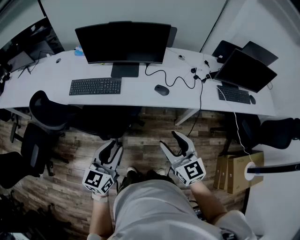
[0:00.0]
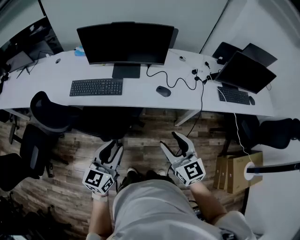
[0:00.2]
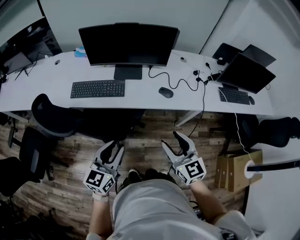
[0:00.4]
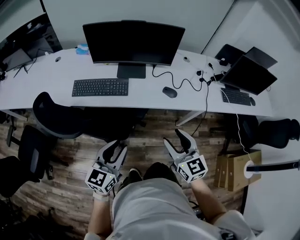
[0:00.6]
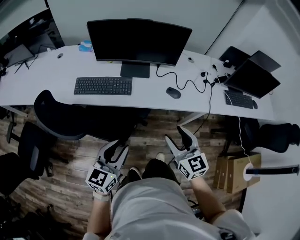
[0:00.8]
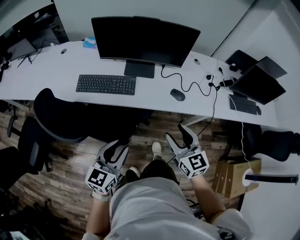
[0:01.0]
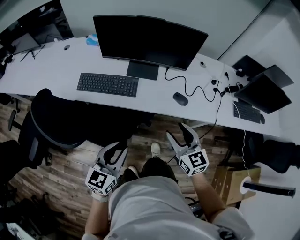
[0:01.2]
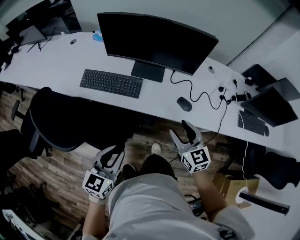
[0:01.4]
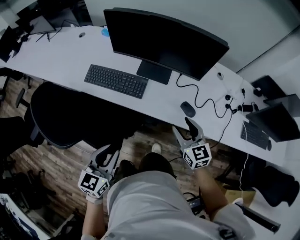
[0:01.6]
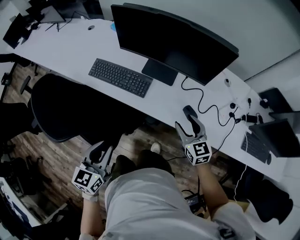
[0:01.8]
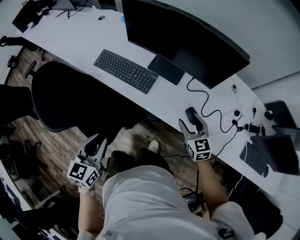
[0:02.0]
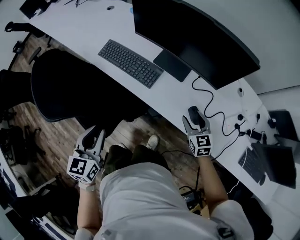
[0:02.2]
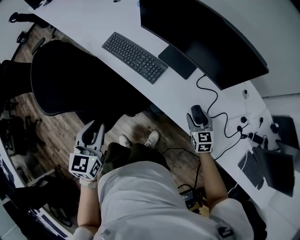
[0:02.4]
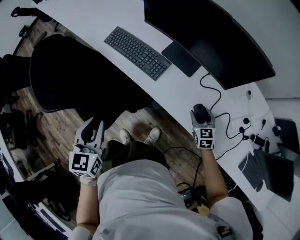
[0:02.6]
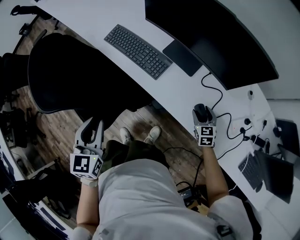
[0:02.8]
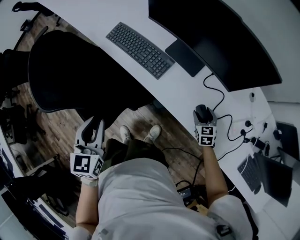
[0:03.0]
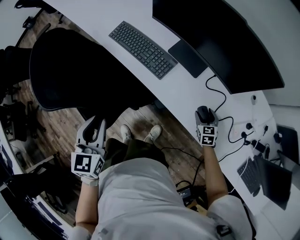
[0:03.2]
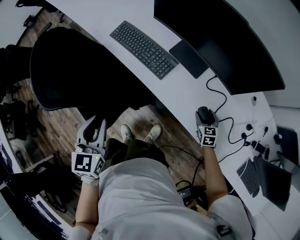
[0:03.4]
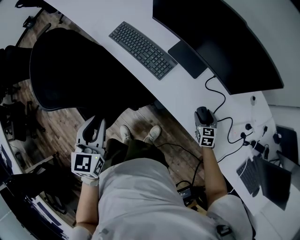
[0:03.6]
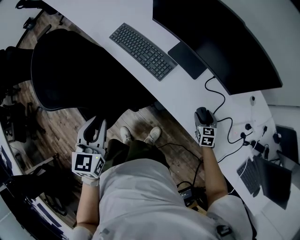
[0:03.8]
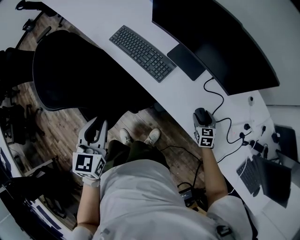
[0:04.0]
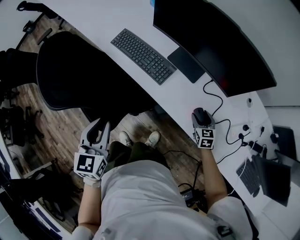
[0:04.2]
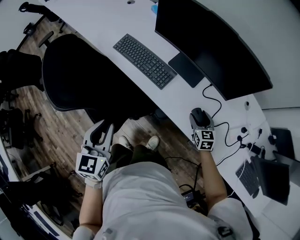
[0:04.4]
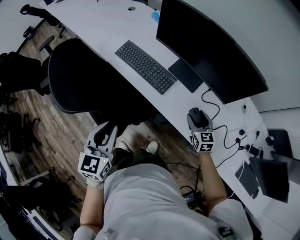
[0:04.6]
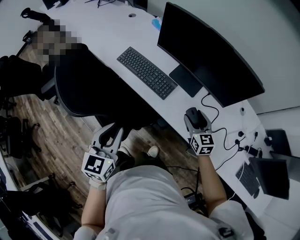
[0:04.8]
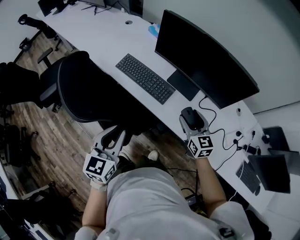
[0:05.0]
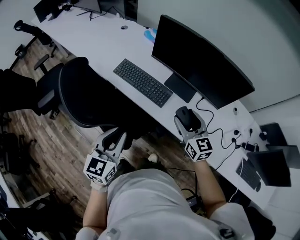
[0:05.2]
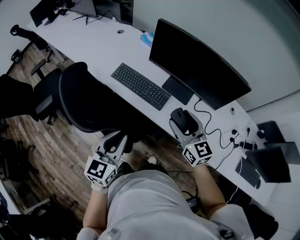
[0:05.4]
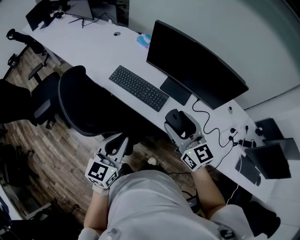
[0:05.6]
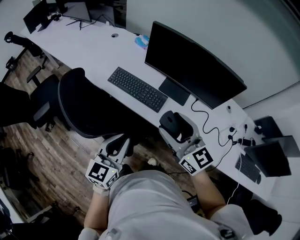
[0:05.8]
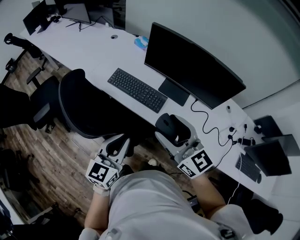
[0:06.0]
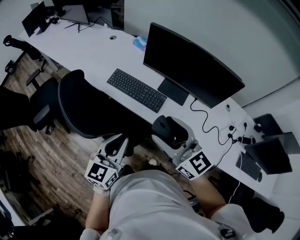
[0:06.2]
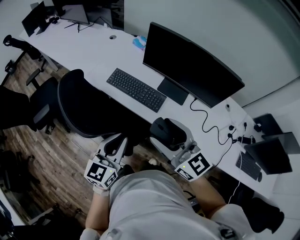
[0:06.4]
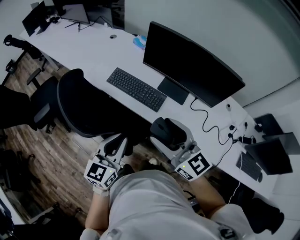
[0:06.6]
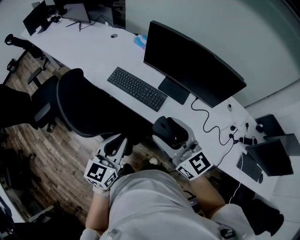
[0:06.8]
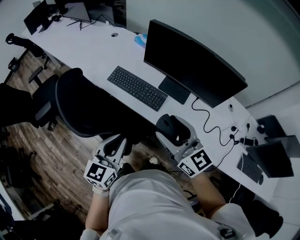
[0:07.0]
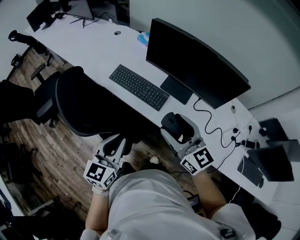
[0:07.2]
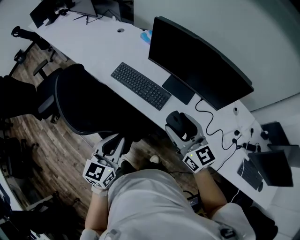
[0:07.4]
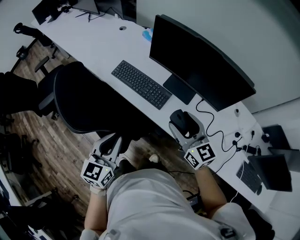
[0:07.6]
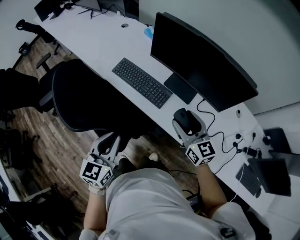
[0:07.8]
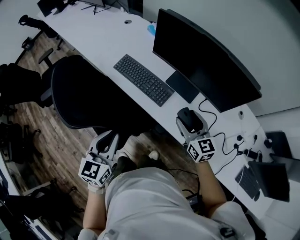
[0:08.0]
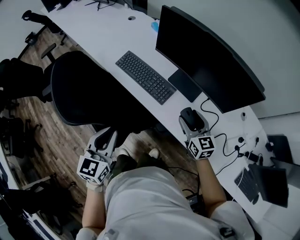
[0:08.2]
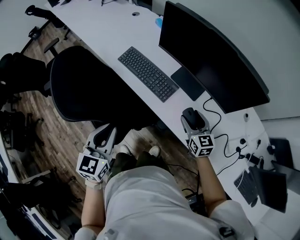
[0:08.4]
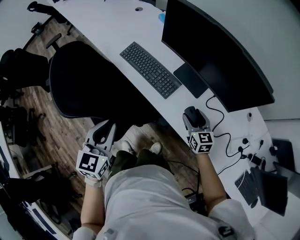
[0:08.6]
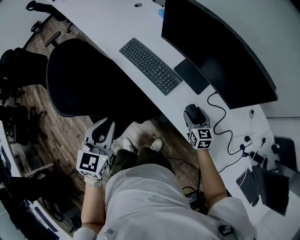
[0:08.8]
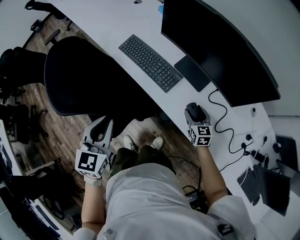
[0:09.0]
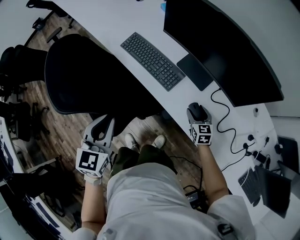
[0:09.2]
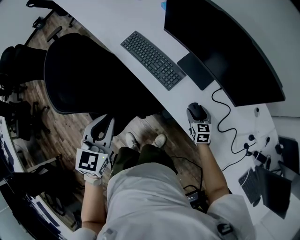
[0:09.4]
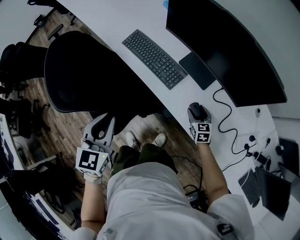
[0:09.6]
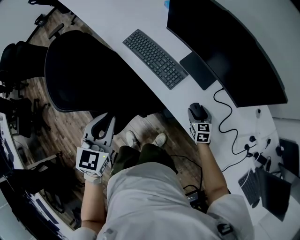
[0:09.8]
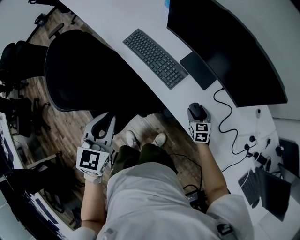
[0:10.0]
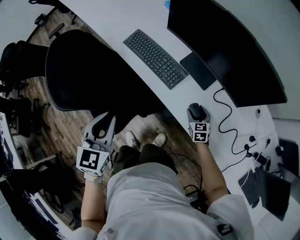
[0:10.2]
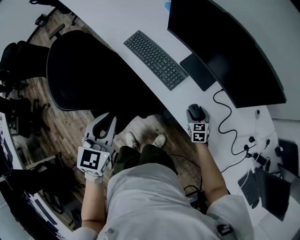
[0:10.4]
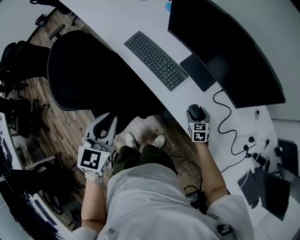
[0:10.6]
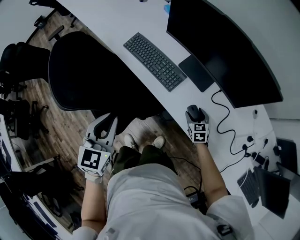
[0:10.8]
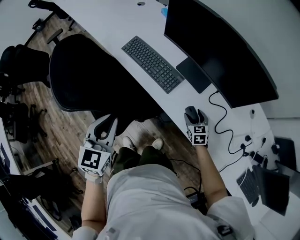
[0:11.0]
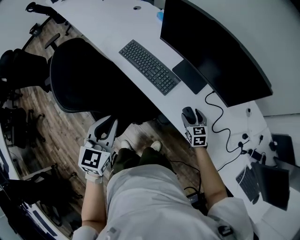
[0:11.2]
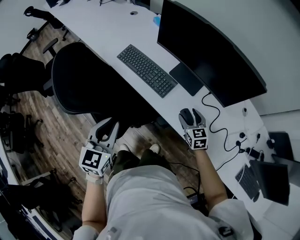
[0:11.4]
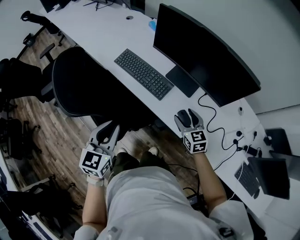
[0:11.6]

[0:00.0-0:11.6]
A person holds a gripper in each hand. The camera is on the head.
0:00.0 to 0:01.4: The left gripper heads forward and to the left, covering roughly 10 cm. The right gripper goes roughly 20 cm forward.
0:01.4 to 0:02.8: The right gripper travels downward by some 25 cm, and rotates about 30 degrees; the left gripper ends up approximately 5 cm from where it was, and rotates approximately 50 degrees.
0:02.8 to 0:04.4: The right gripper ends up roughly 5 cm from where it was.
0:04.4 to 0:05.8: The right gripper moves upward and to the left, approximately 40 cm, and points its fingers some 30 degrees further upward; the left gripper heads upward, covering about 5 cm, and turns by roughly 30 degrees.
0:05.8 to 0:07.2: The grippers move only a little.
0:07.2 to 0:08.8: The right gripper travels downward and to the right by approximately 30 cm, and turns by some 30 degrees, while the left gripper swivels some 20 degrees.
0:08.8 to 0:10.2: The right gripper is displaced downward by about 10 cm.
0:10.2 to 0:11.6: The right gripper is displaced upward by about 15 cm.

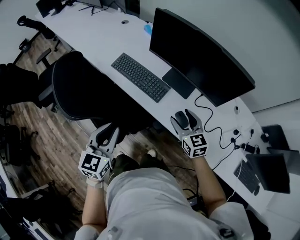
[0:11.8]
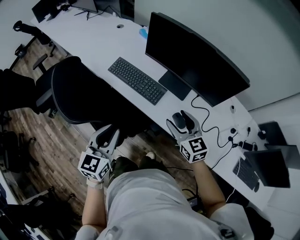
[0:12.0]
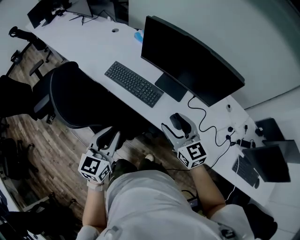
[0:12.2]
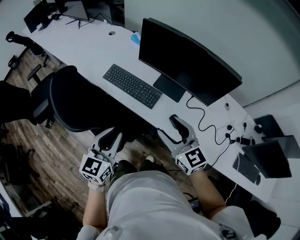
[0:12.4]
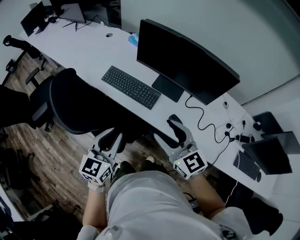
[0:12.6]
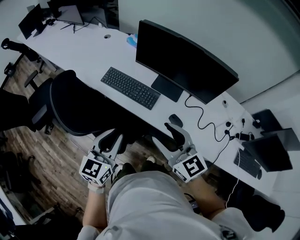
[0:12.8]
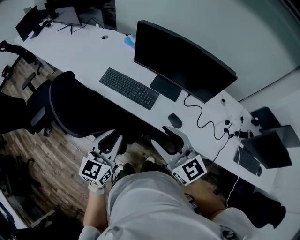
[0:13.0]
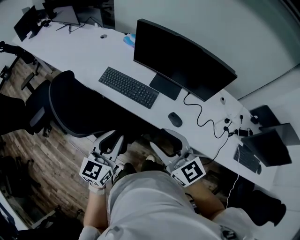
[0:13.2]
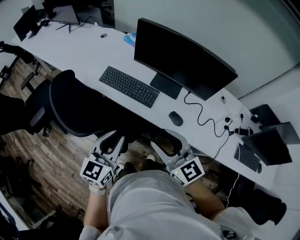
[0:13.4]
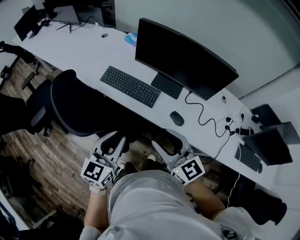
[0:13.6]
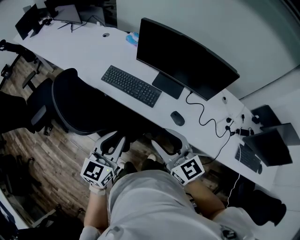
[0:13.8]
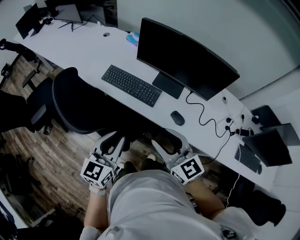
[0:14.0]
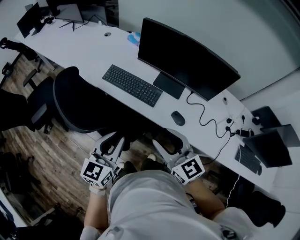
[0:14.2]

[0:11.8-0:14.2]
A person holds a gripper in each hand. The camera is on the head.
0:11.8 to 0:13.0: The right gripper moves upward, to the left and backward, roughly 20 cm.
0:13.0 to 0:14.2: There are only small adjustments of the grippers.

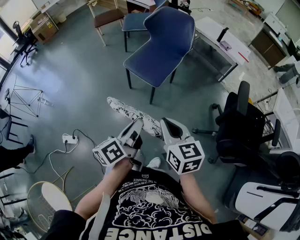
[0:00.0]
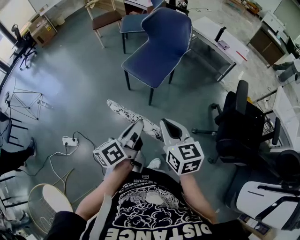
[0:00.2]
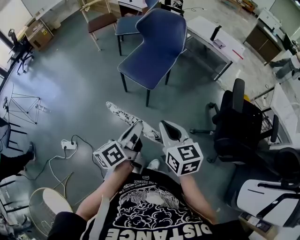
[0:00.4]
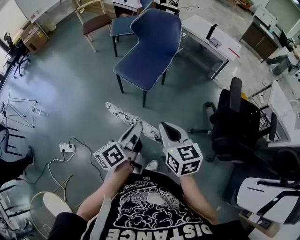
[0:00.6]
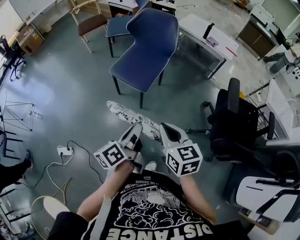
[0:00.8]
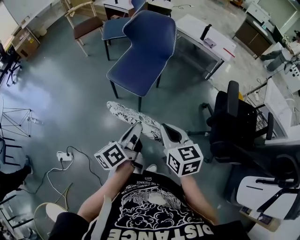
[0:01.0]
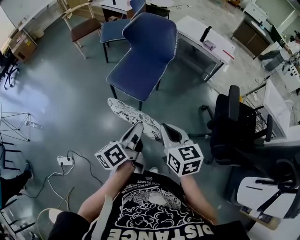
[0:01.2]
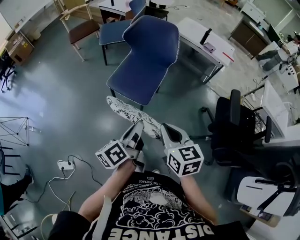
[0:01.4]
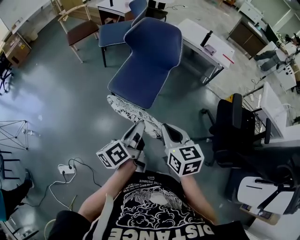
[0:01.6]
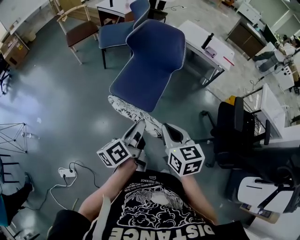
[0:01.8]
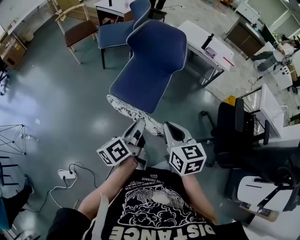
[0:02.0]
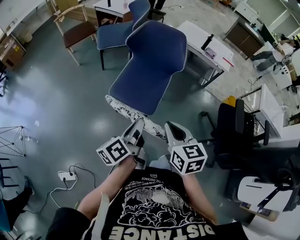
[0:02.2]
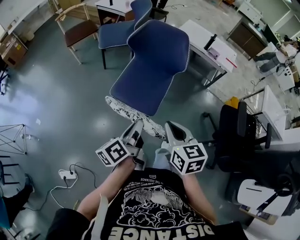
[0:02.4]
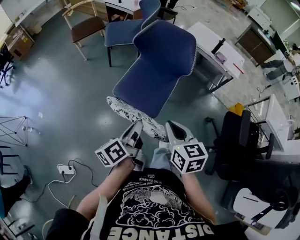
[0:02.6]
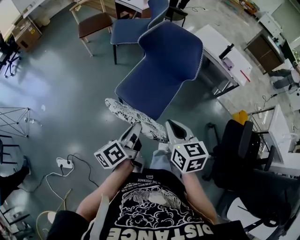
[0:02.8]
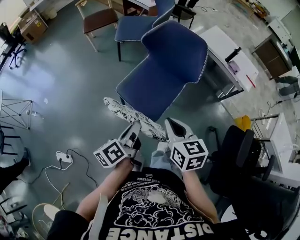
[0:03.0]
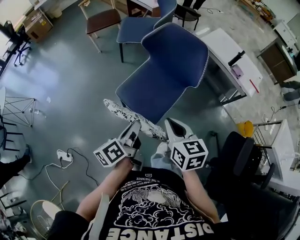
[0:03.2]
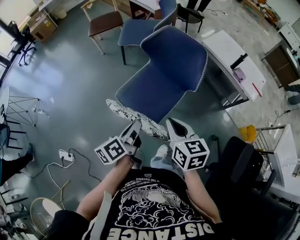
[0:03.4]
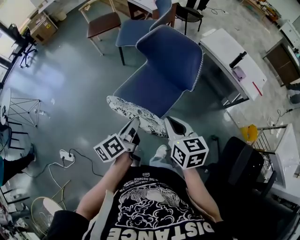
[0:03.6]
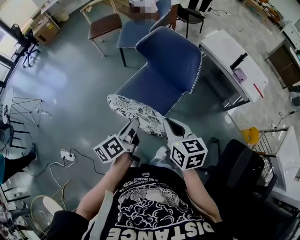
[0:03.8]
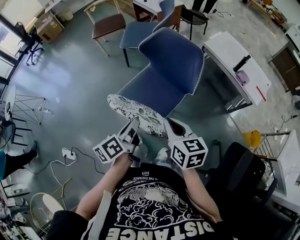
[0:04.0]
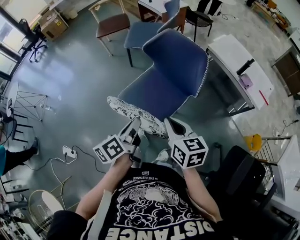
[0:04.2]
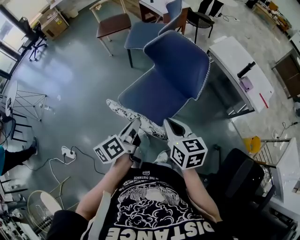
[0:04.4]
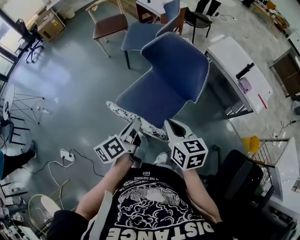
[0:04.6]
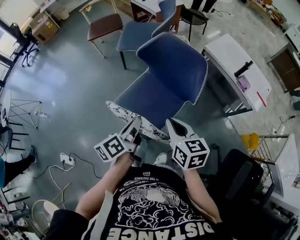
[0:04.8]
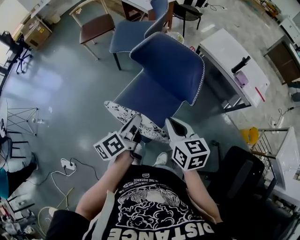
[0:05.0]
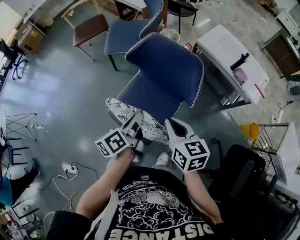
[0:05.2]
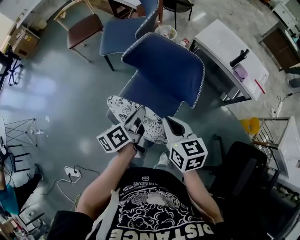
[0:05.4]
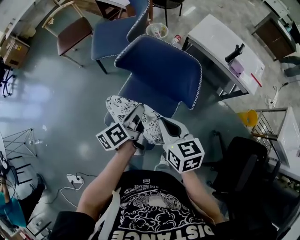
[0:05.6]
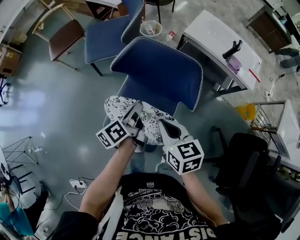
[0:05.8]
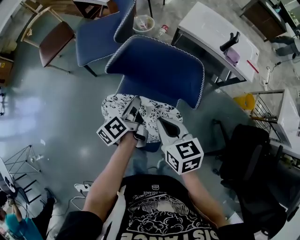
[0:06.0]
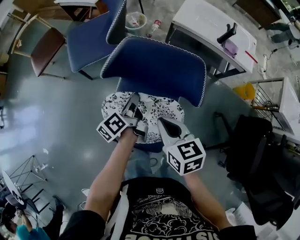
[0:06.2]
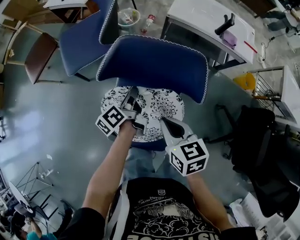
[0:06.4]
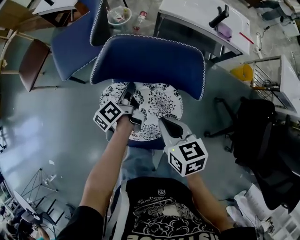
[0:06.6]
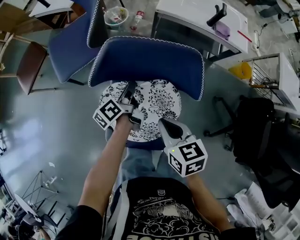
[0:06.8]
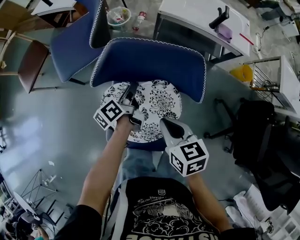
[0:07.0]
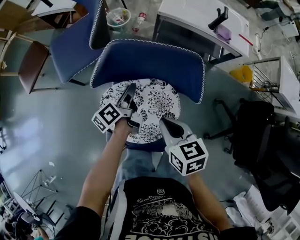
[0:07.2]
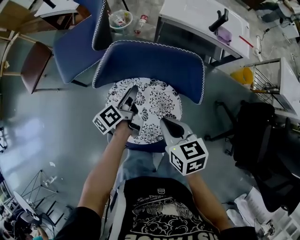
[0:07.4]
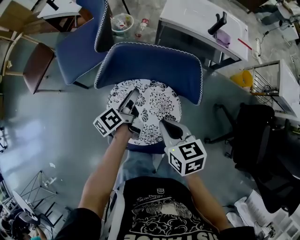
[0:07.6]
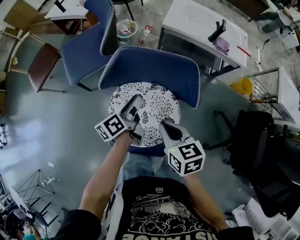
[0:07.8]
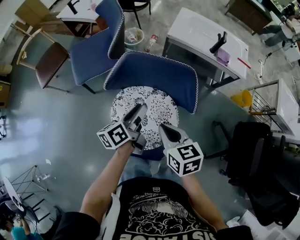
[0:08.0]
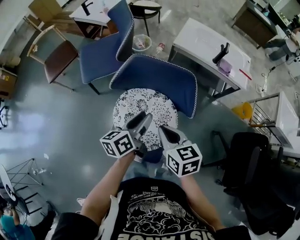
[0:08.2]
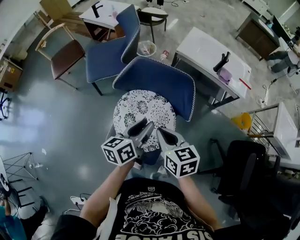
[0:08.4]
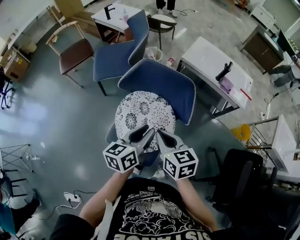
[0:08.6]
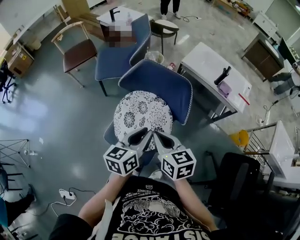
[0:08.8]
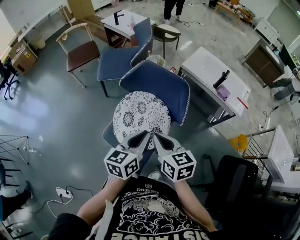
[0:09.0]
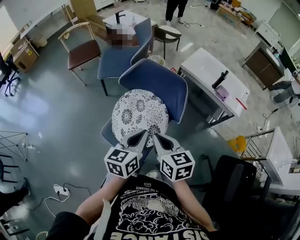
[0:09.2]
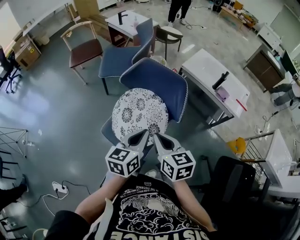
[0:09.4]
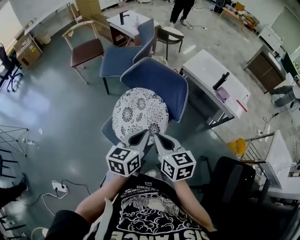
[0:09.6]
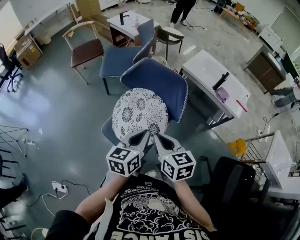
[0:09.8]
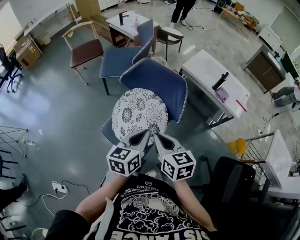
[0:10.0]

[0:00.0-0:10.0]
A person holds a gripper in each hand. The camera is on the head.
0:00.0 to 0:01.4: The grippers both shift forward by about 15 cm.
0:01.4 to 0:02.8: The right gripper heads forward, covering some 15 cm. Meanwhile the left gripper is displaced forward and to the left by some 15 cm.
0:02.8 to 0:04.2: The right gripper moves forward and to the right, some 15 cm. The left gripper heads to the right and forward, covering approximately 10 cm.
0:04.2 to 0:05.8: The left gripper heads forward, covering roughly 25 cm, while the right gripper moves forward, about 15 cm.
0:05.8 to 0:07.2: The left gripper shifts about 15 cm forward and downward, and opens its fingers; the right gripper heads downward, covering about 5 cm.
0:07.2 to 0:08.6: The left gripper goes about 25 cm upward and backward, and rotates approximately 40 degrees. Meanwhile the right gripper is displaced upward and backward by roughly 10 cm.
0:08.6 to 0:10.0: Both grippers move backward, about 10 cm. The left gripper closes its fingers.
